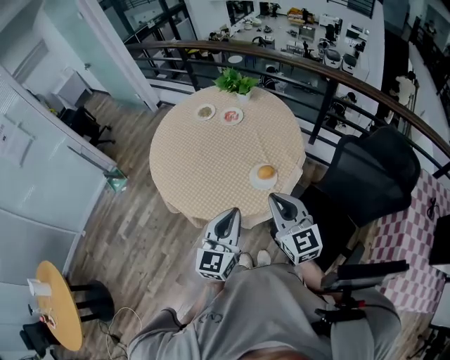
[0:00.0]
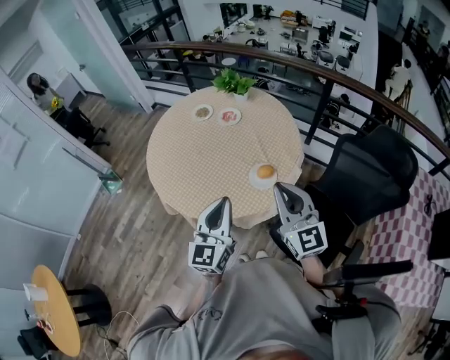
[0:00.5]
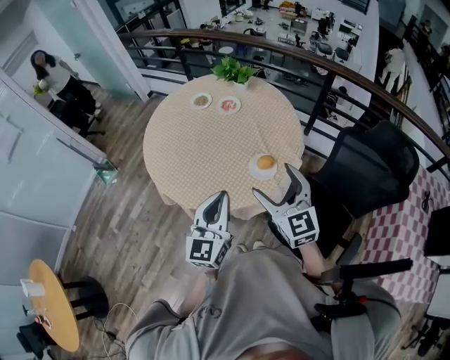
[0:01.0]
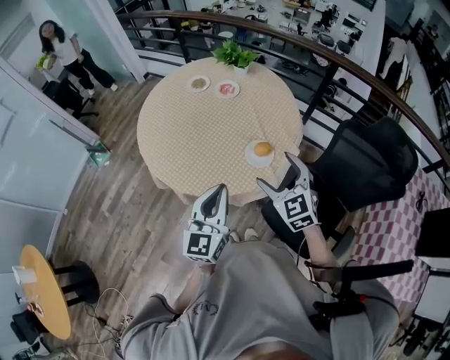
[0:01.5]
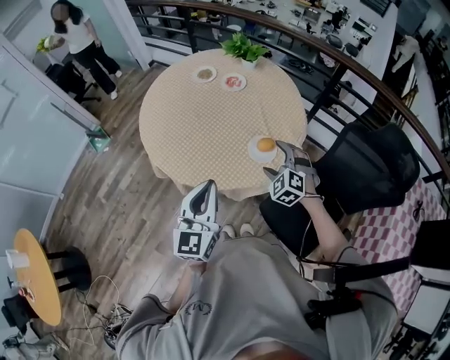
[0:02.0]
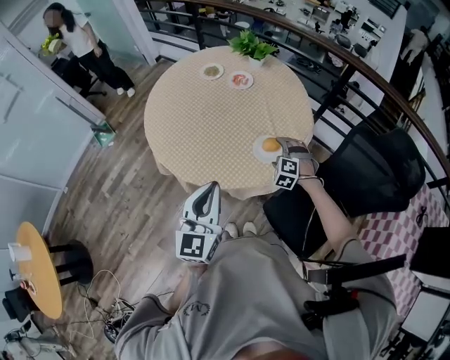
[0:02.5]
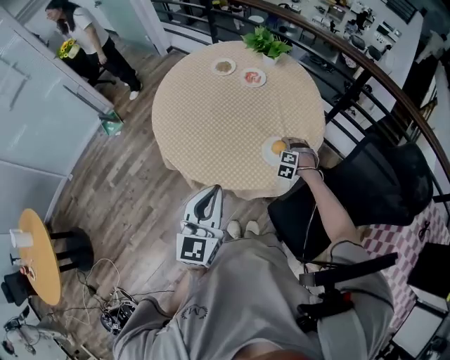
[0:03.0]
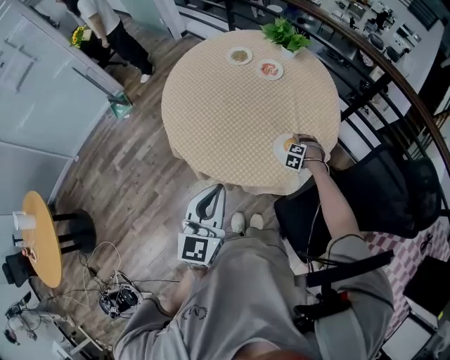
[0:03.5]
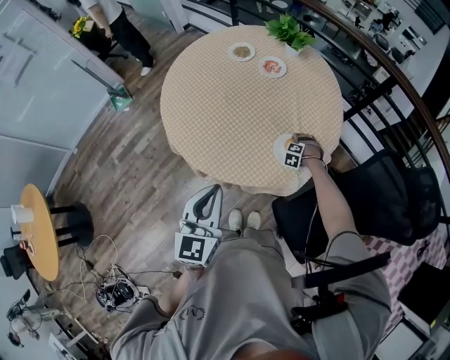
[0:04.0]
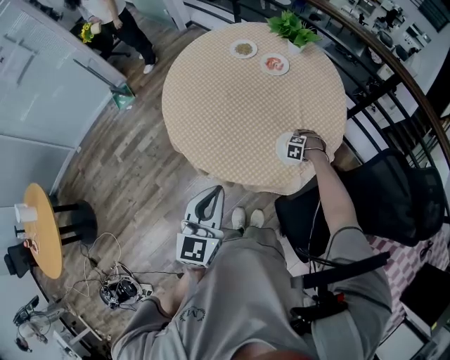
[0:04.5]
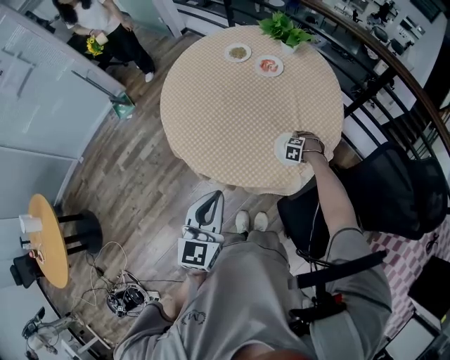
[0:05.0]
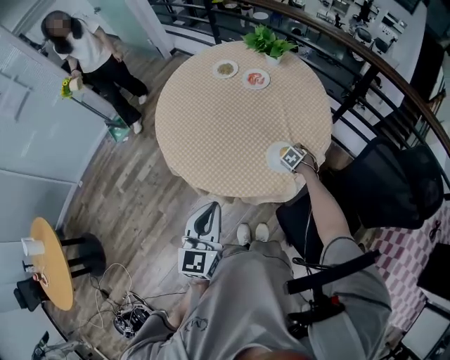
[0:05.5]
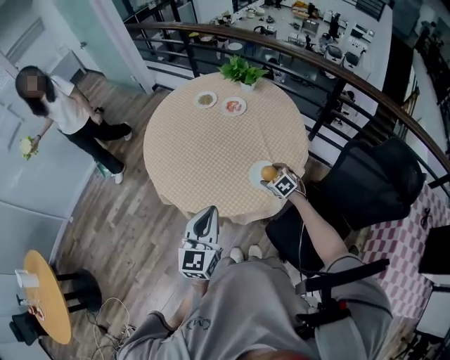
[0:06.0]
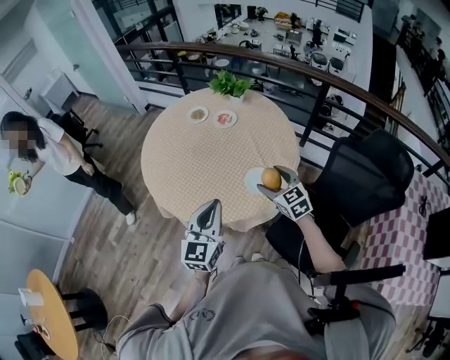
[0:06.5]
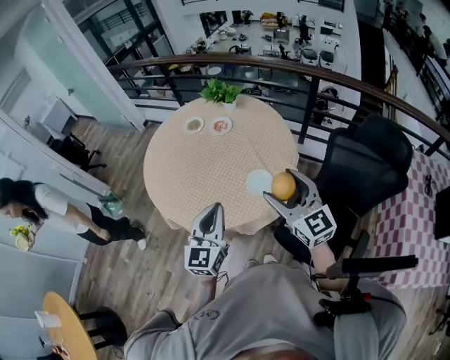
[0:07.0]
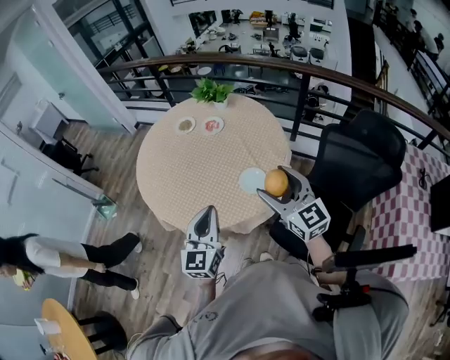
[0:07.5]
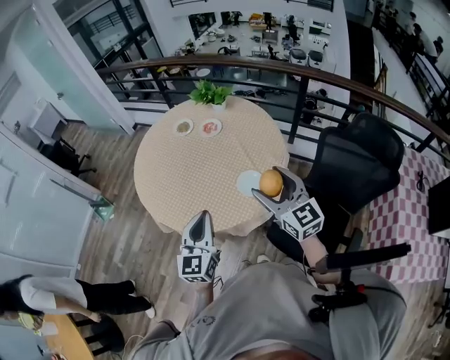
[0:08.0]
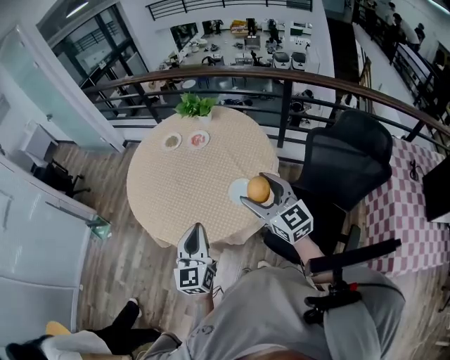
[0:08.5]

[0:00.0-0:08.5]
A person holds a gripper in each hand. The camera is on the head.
0:00.0 to 0:02.0: The right gripper is displaced downward and forward by approximately 20 cm, tips its fingers downward by some 40 degrees, and opens up. Meanwhile the left gripper travels to the left by some 10 cm.
0:02.0 to 0:04.0: The left gripper shifts by approximately 5 cm; the right gripper goes about 30 cm downward, and tilts its fingers about 30 degrees downward.
0:04.0 to 0:06.5: The right gripper travels upward by approximately 35 cm, and angles its fingers upward, by about 50 degrees. The left gripper ends up about 5 cm from where it was.
0:06.5 to 0:08.5: The right gripper goes approximately 15 cm upward and backward, and swivels some 20 degrees.

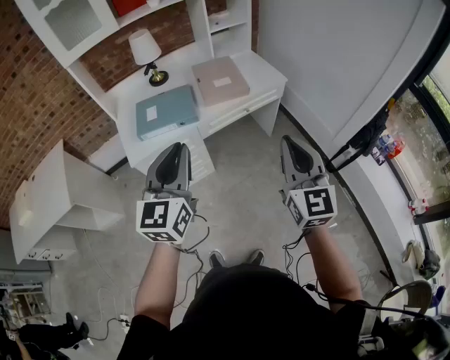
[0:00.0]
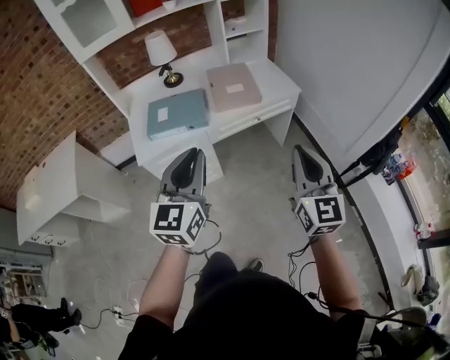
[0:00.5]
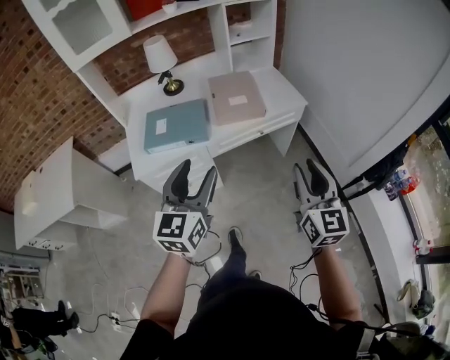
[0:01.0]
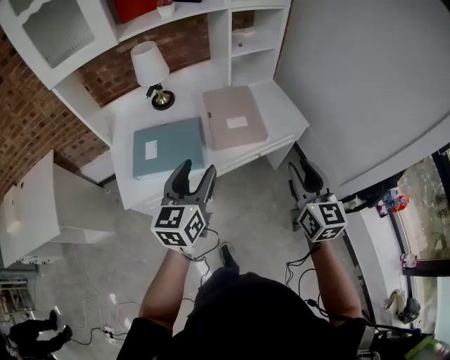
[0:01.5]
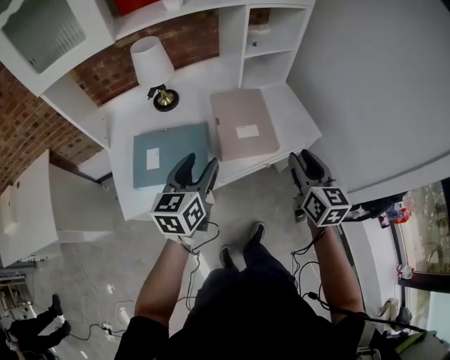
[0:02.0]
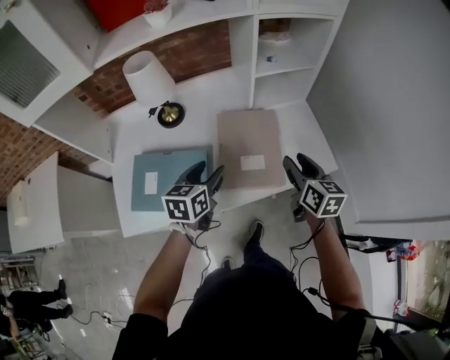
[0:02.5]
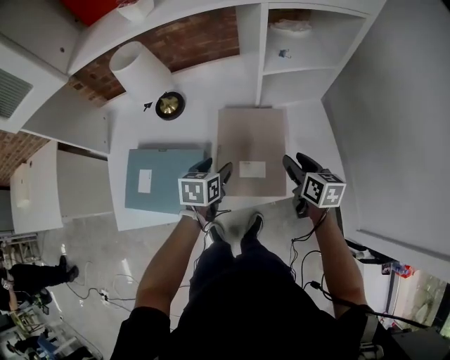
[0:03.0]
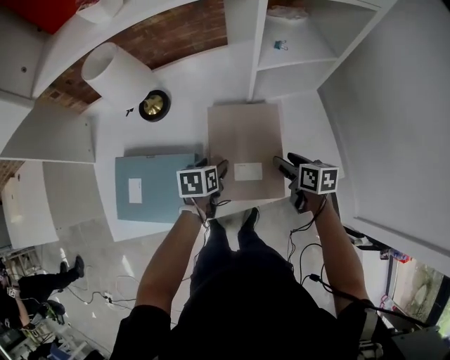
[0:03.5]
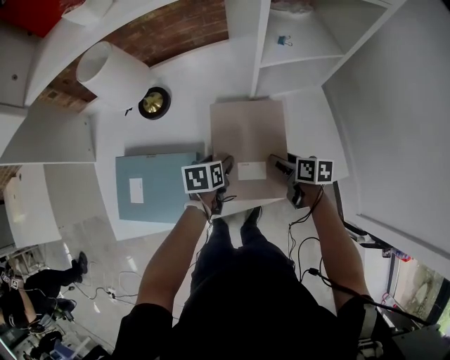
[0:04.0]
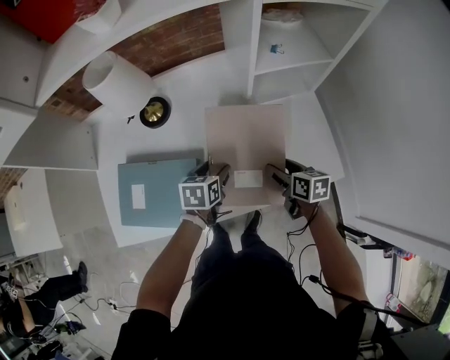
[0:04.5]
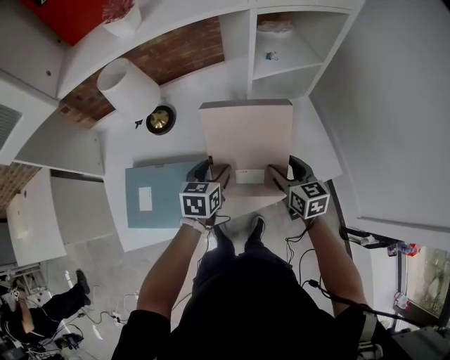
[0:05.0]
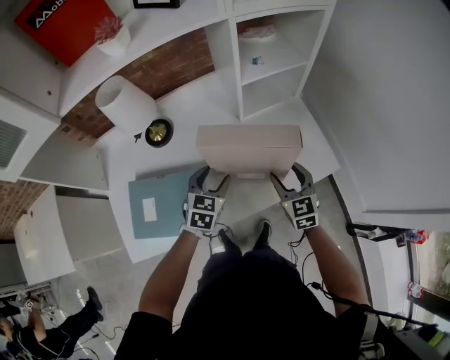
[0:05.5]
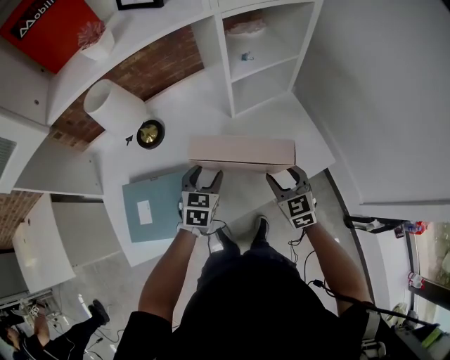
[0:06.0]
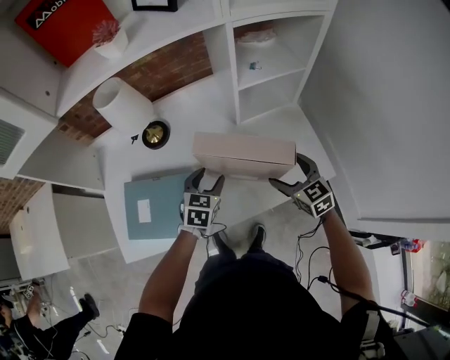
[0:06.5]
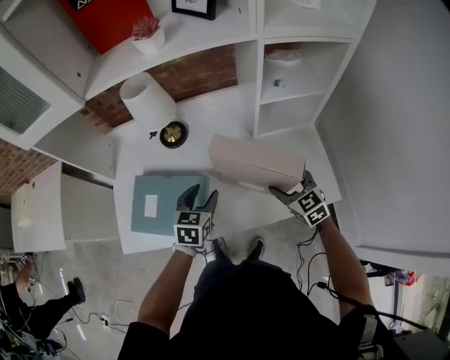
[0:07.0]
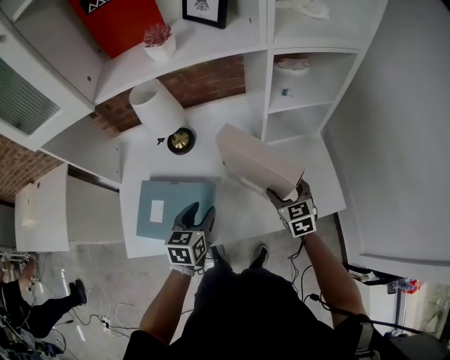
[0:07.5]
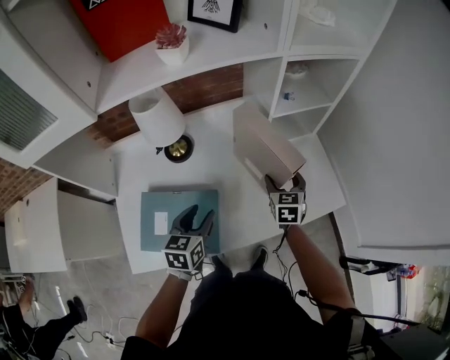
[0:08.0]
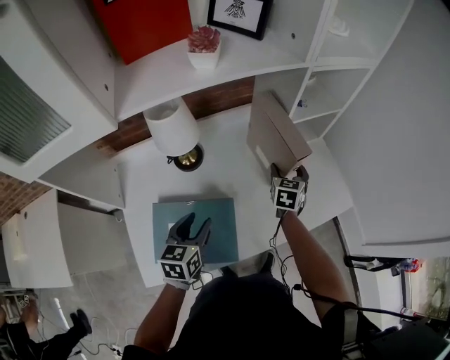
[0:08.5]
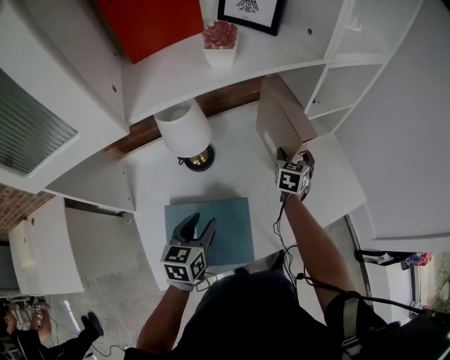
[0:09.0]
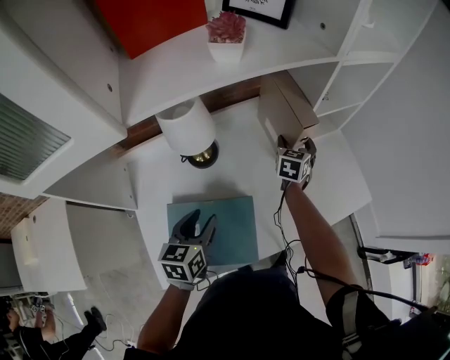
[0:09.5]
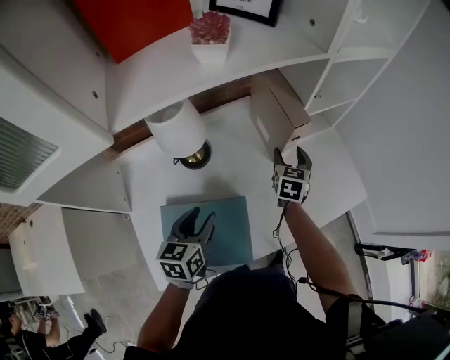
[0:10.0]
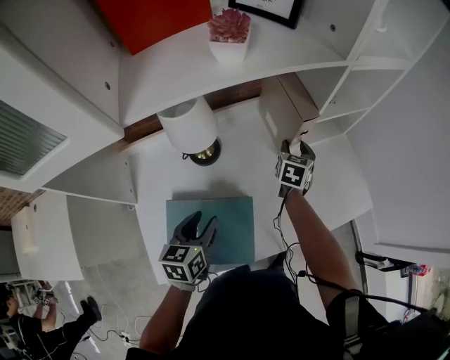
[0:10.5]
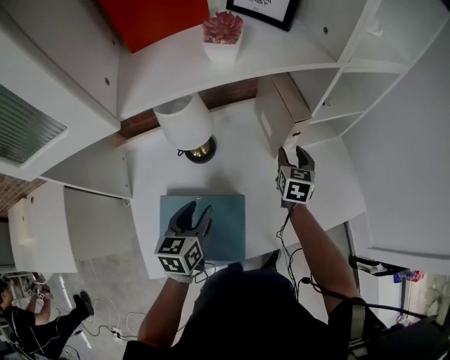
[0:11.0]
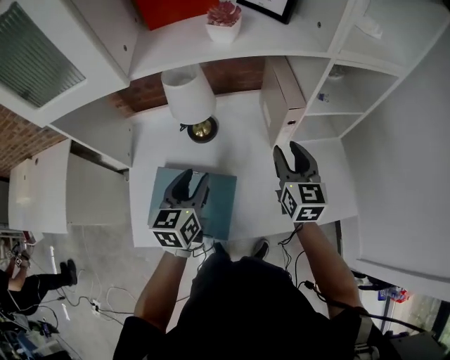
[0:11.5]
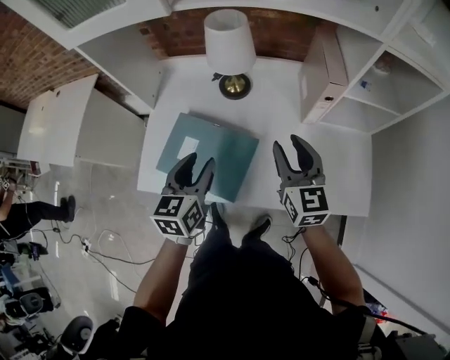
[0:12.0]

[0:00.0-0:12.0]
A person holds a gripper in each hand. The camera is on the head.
0:00.0 to 0:02.0: The two grippers go approximately 40 cm forward. The left gripper turns by roughly 20 degrees, and opens up. Meanwhile the right gripper rotates approximately 20 degrees, and opens.
0:02.0 to 0:04.0: Both grippers move downward and forward, some 40 cm. The right gripper turns by approximately 50 degrees; the left gripper points its fingers roughly 40 degrees further downward.
0:04.0 to 0:06.0: The left gripper moves upward, some 10 cm, and swivels about 40 degrees. The right gripper is displaced upward and backward by approximately 15 cm, and rotates around the line of its fingers by roughly 50 degrees, counterclockwise from behind.
0:06.0 to 0:08.0: The right gripper heads forward, covering approximately 10 cm. Meanwhile the left gripper travels to the left and upward by about 15 cm, and rotates roughly 20 degrees.
0:08.0 to 0:10.0: The left gripper shifts some 10 cm to the left. The right gripper travels to the left and forward by some 10 cm.
0:10.0 to 0:12.0: The left gripper shifts by roughly 10 cm, and rotates about 30 degrees; the right gripper ends up roughly 25 cm from where it was, and turns by roughly 50 degrees.

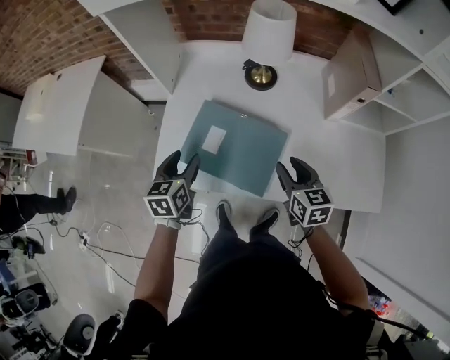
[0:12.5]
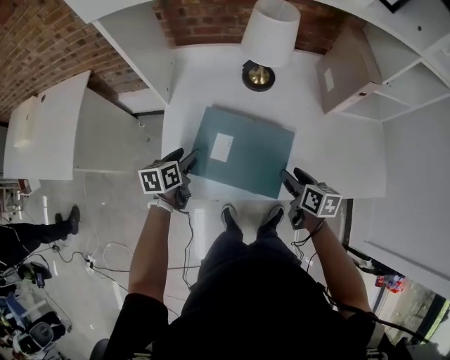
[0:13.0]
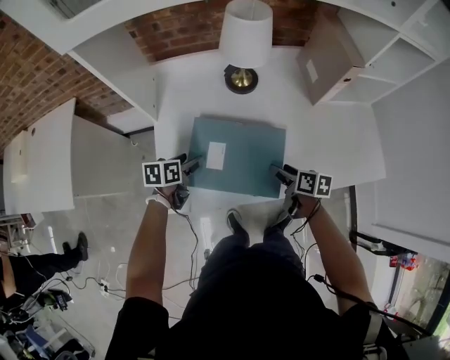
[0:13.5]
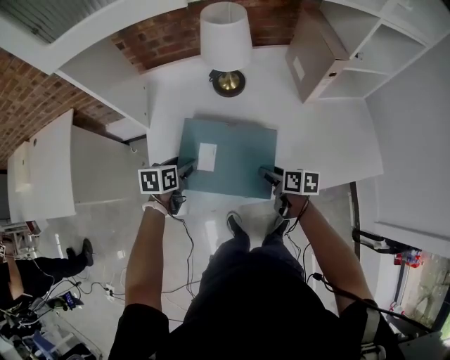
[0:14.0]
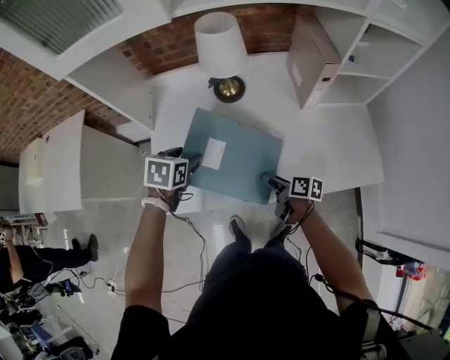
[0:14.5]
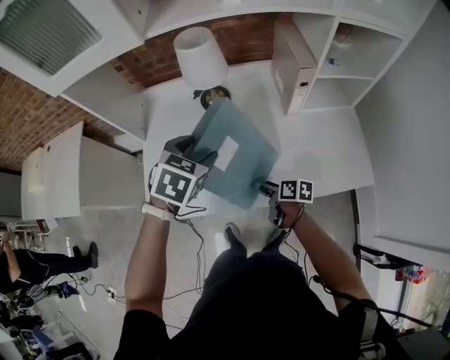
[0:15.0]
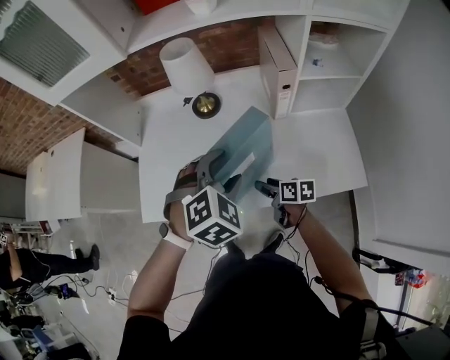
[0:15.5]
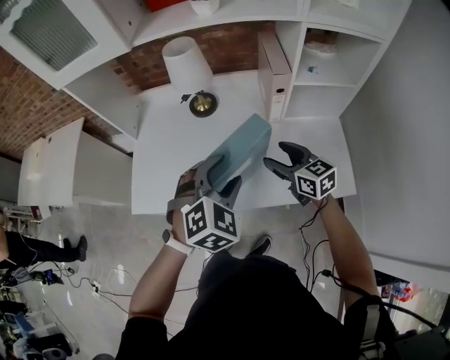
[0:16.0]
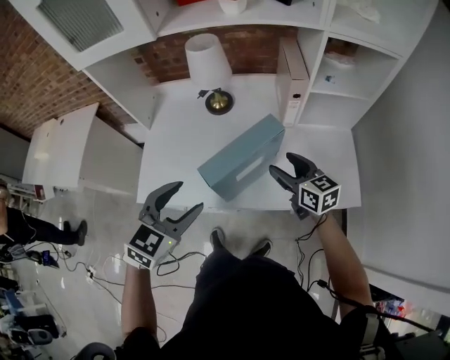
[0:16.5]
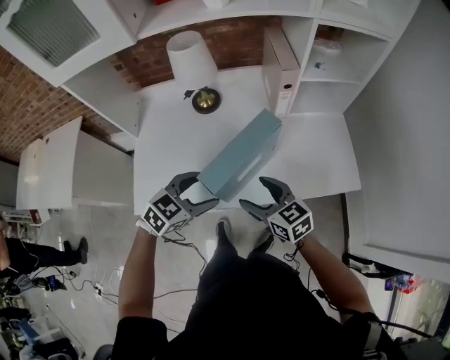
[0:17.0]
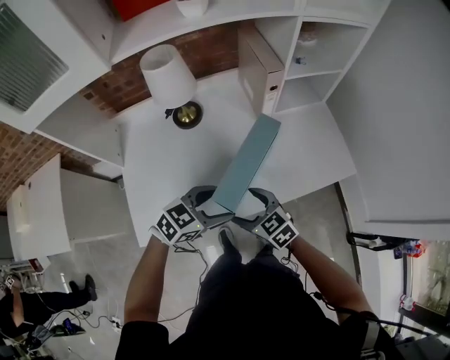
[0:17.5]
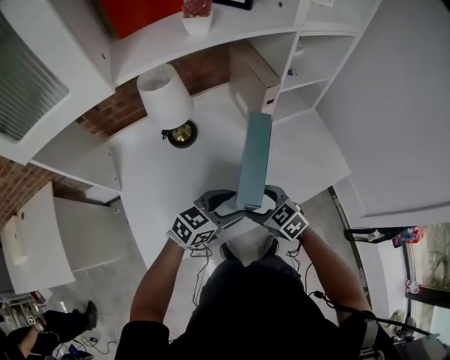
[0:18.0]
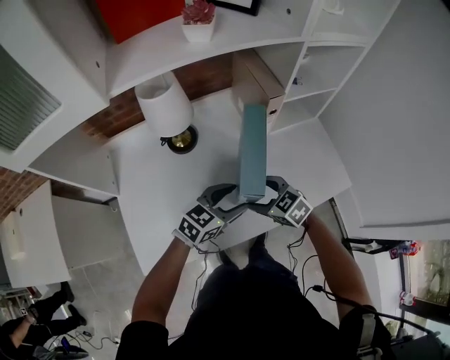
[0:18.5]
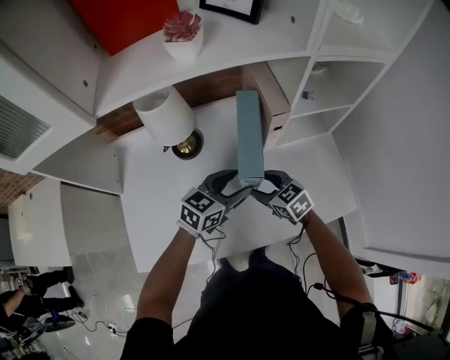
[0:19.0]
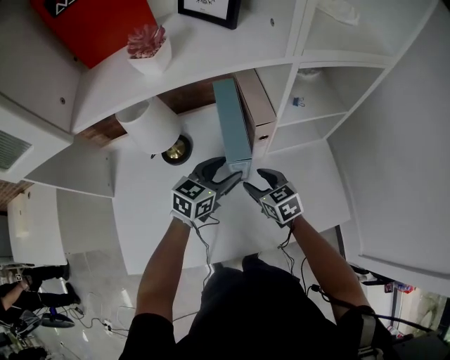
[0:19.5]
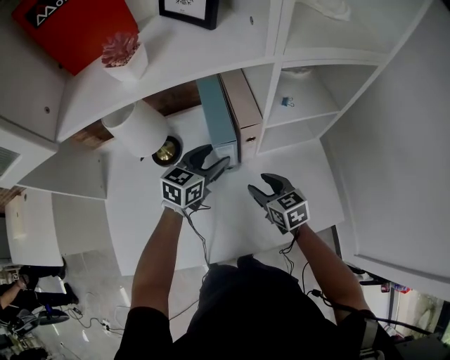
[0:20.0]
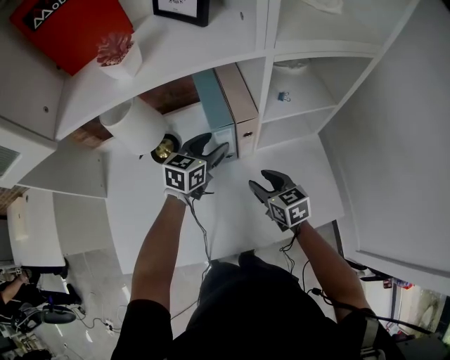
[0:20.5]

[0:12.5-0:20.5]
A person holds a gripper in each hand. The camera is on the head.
0:12.5 to 0:14.5: The right gripper moves downward, some 10 cm, and rolls clockwise, seen from behind, by roughly 50 degrees; the left gripper shifts roughly 10 cm forward and to the right, and changes its angle by some 40 degrees.
0:14.5 to 0:16.5: The left gripper shifts roughly 30 cm backward, upward and to the right, and changes its angle by roughly 30 degrees. The right gripper goes about 25 cm upward and to the right, and twists roughly 50 degrees counterclockwise, seen from behind.
0:16.5 to 0:18.5: The right gripper turns by roughly 30 degrees. The left gripper shifts by some 20 cm, and swivels approximately 40 degrees.
0:18.5 to 0:20.5: The left gripper shifts approximately 25 cm forward, and changes its angle by some 30 degrees; the right gripper shifts approximately 20 cm to the right and forward, swivels about 30 degrees, and closes its fingers.
